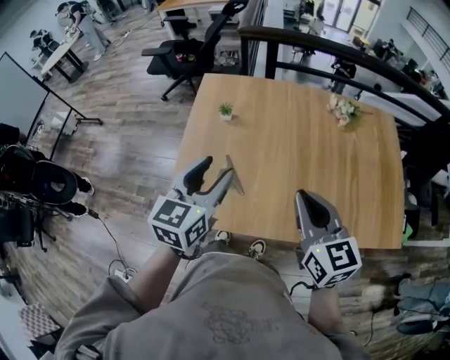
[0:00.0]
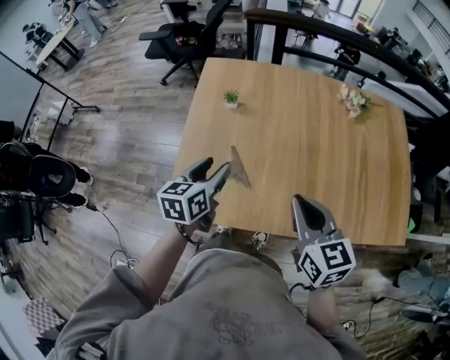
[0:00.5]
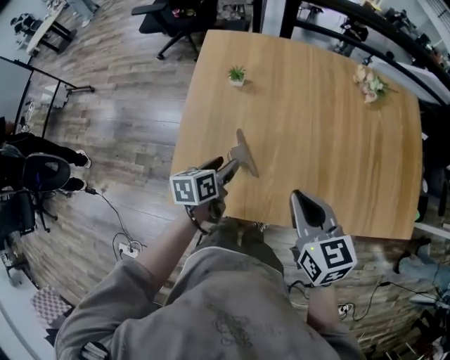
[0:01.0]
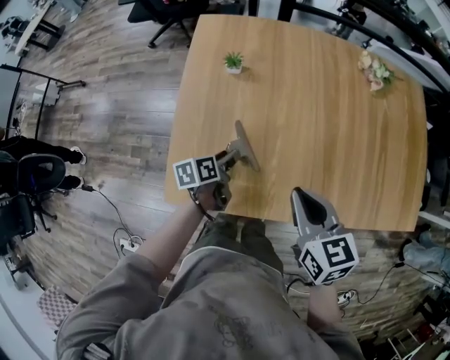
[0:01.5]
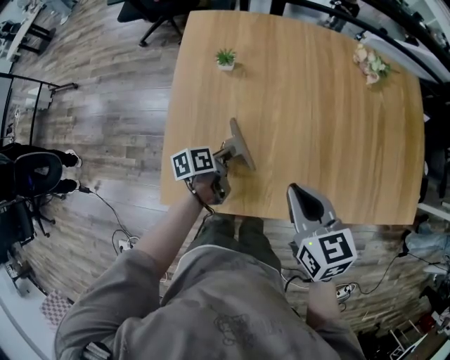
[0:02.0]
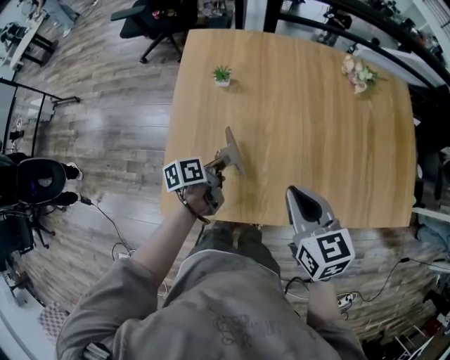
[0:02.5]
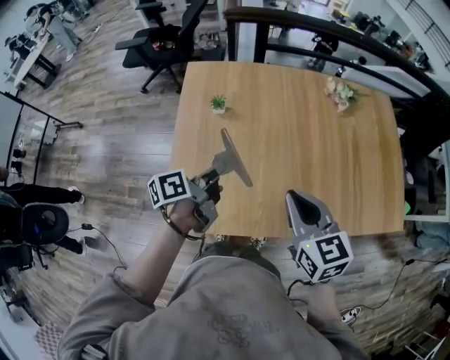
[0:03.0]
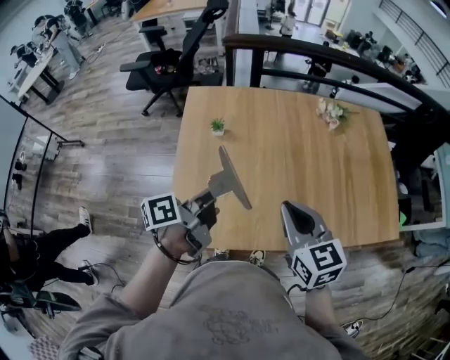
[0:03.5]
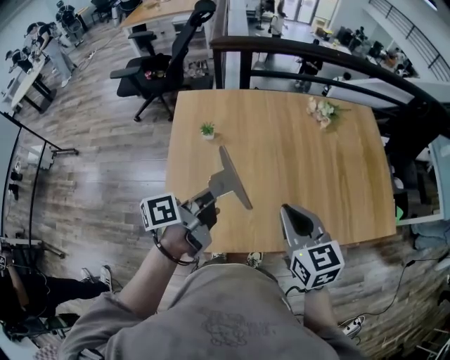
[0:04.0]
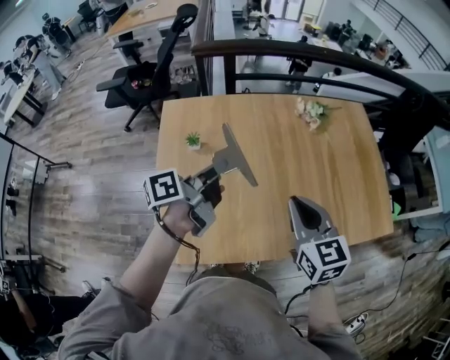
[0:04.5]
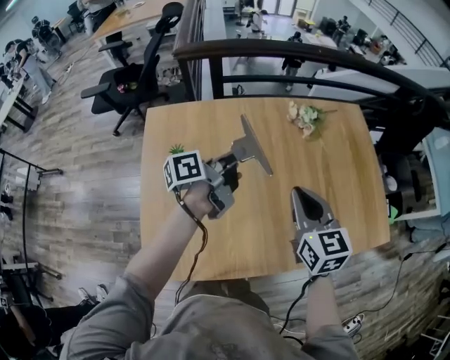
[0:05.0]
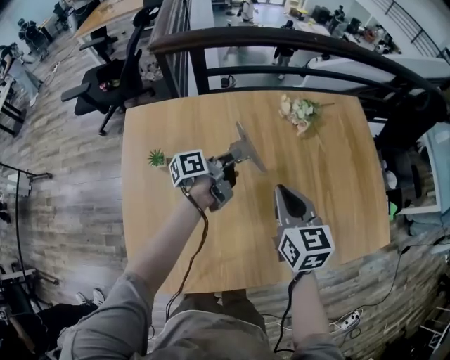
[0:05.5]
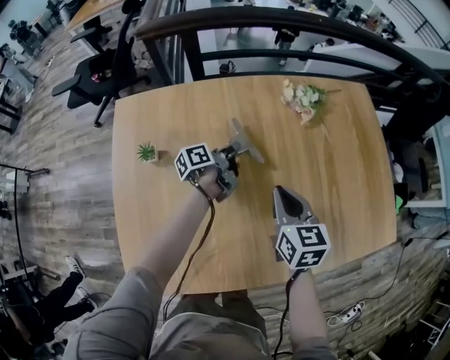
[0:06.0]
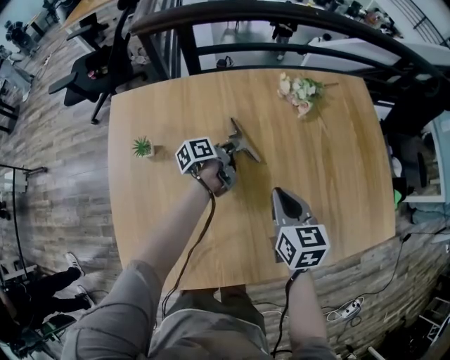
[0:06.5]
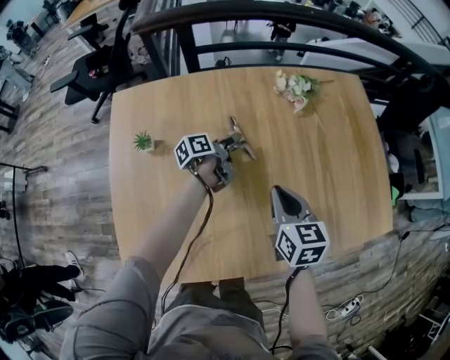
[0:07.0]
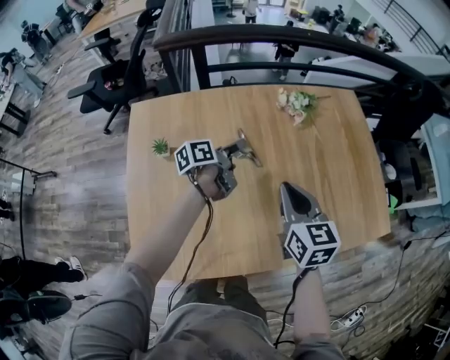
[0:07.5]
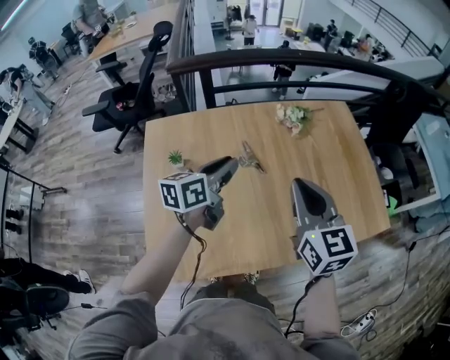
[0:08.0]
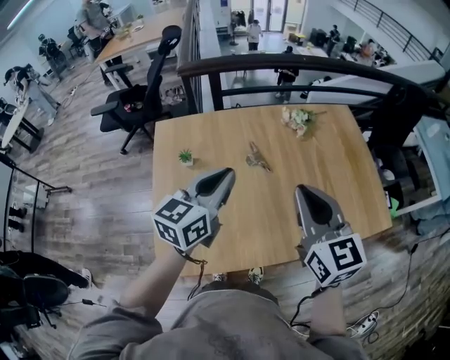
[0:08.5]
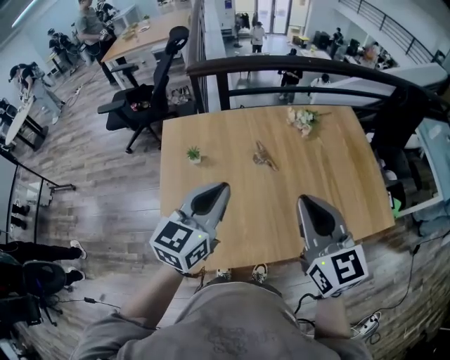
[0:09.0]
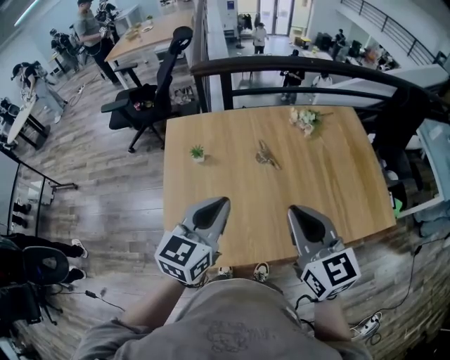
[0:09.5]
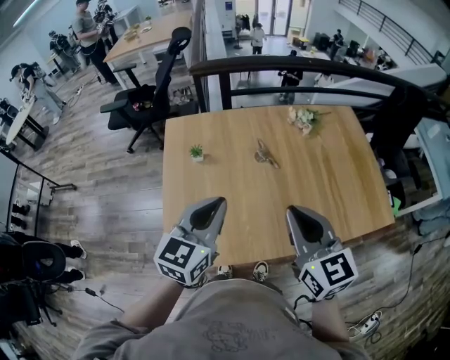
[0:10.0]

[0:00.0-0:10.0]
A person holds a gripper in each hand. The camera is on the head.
0:00.0 to 0:02.0: The right gripper goes some 20 cm downward and to the left, and changes its angle by some 20 degrees. Meanwhile the left gripper shifts approximately 35 cm downward, rotates around the line of its fingers by some 60 degrees, counterclockwise from behind, and closes its fingers.
0:02.0 to 0:04.0: The right gripper travels upward by about 15 cm. The left gripper travels upward by roughly 30 cm, and swivels about 20 degrees.
0:04.0 to 0:06.0: Both grippers move forward and downward, about 40 cm.
0:06.0 to 0:08.0: Both grippers travel together upward and backward, approximately 35 cm. The left gripper rotates around the line of its fingers by about 50 degrees, clockwise from behind, and opens, then closes again. The right gripper swivels some 20 degrees.
0:08.0 to 0:10.0: The right gripper goes some 15 cm backward and to the left, while the left gripper shifts approximately 20 cm backward, and changes its angle by roughly 30 degrees.

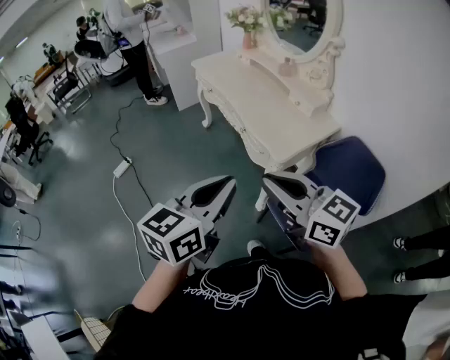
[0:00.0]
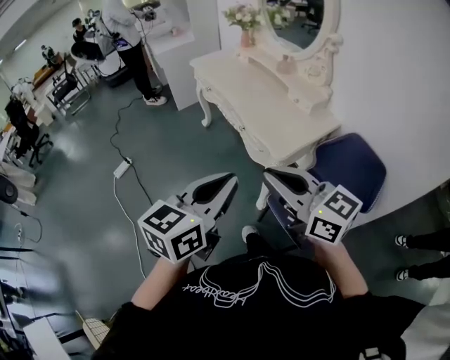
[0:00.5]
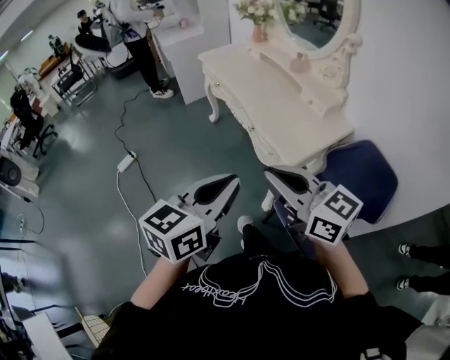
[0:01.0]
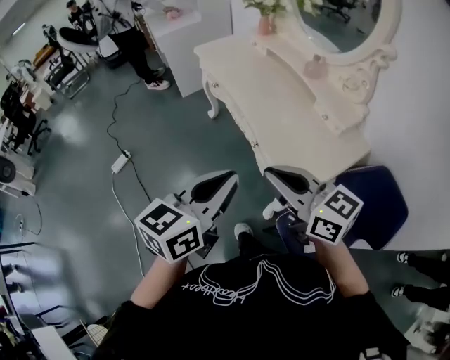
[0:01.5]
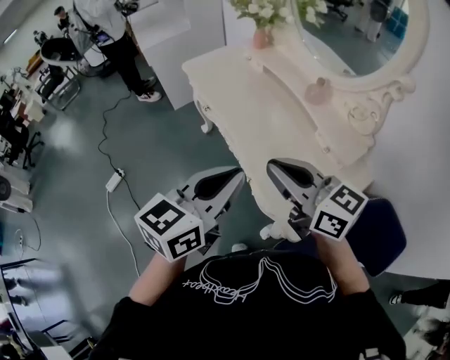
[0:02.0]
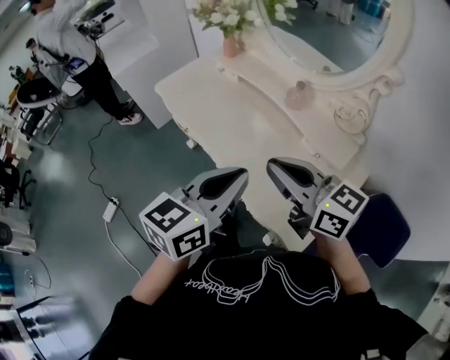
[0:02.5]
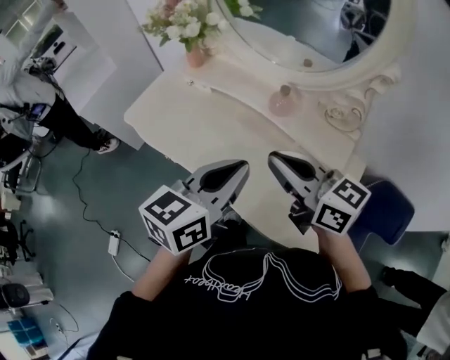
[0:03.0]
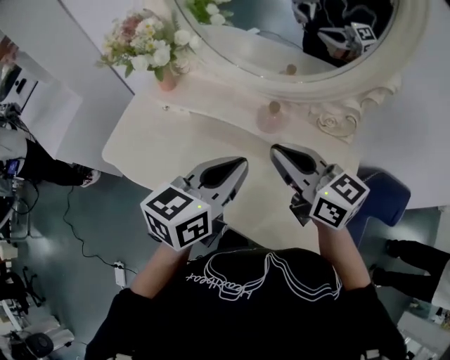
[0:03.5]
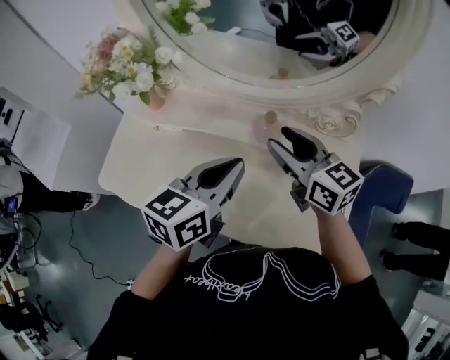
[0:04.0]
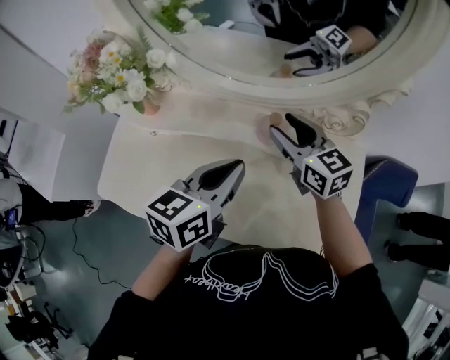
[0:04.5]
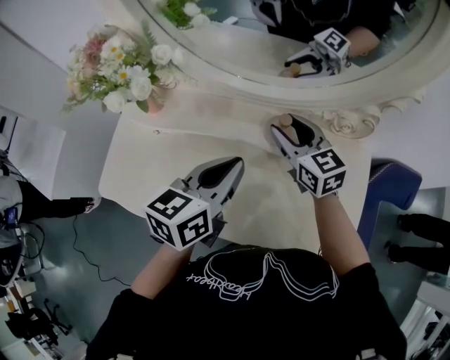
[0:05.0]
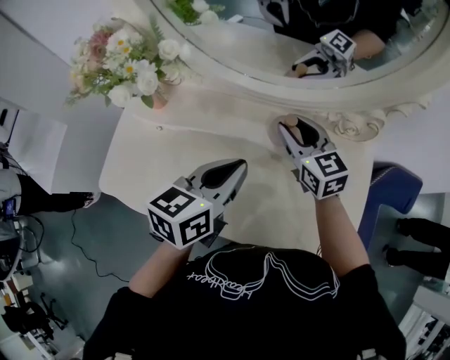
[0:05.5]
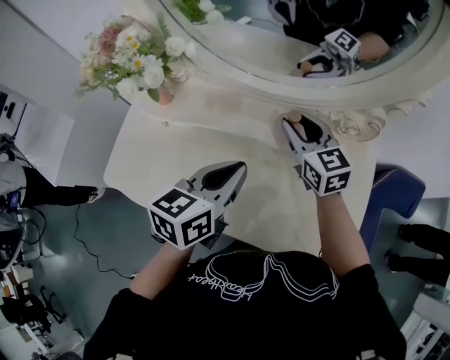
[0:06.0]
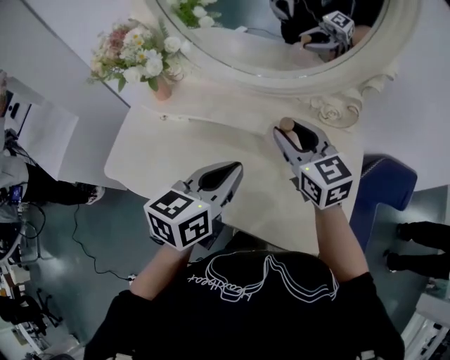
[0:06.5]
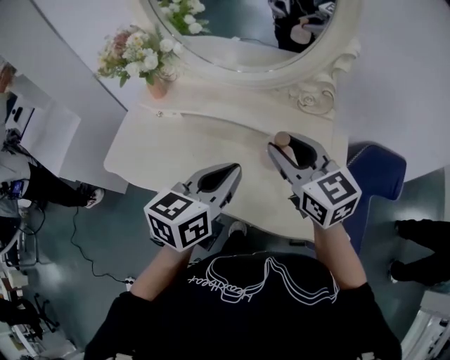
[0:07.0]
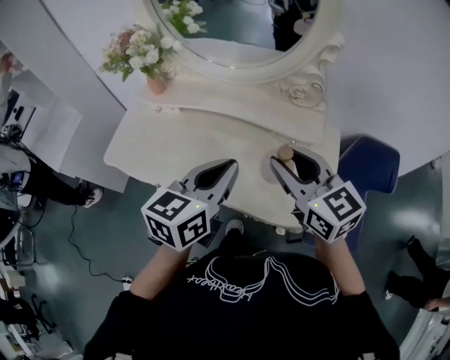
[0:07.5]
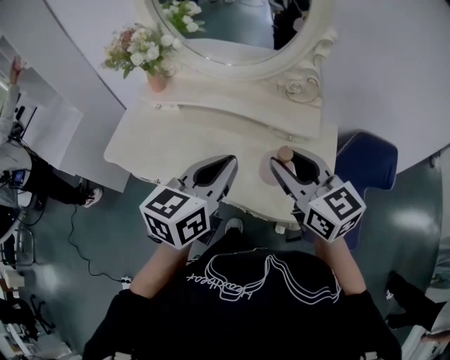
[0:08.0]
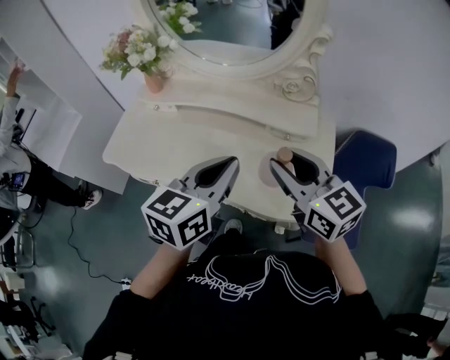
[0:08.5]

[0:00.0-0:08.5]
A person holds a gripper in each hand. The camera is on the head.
0:00.0 to 0:02.0: The pair of grippers is taken forward, some 40 cm.
0:02.0 to 0:04.0: The right gripper shifts by some 30 cm, turns by roughly 50 degrees, and opens up. Meanwhile the left gripper ends up about 30 cm from where it was, and changes its angle by approximately 40 degrees.
0:04.0 to 0:06.5: The right gripper reaches approximately 10 cm forward, then returns.
0:06.5 to 0:08.5: The right gripper moves backward, about 20 cm, while the left gripper goes about 15 cm backward and to the right.

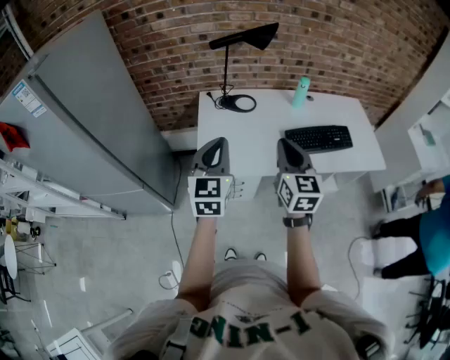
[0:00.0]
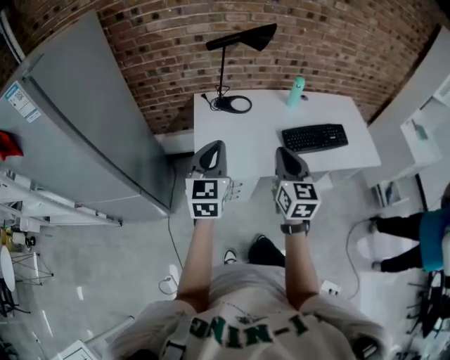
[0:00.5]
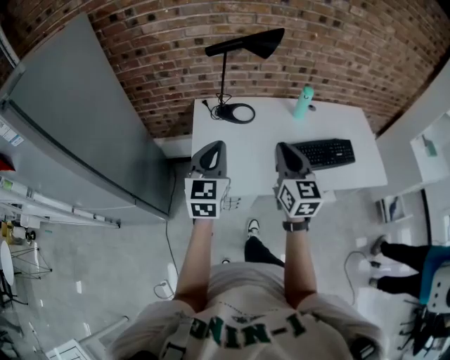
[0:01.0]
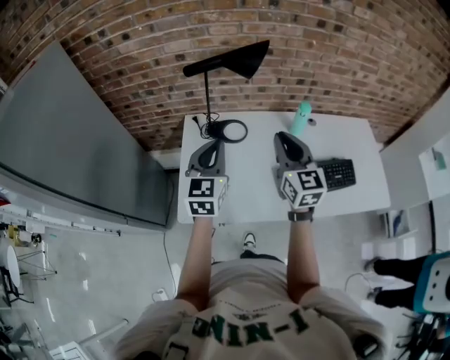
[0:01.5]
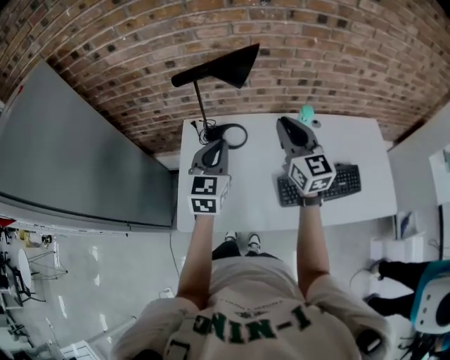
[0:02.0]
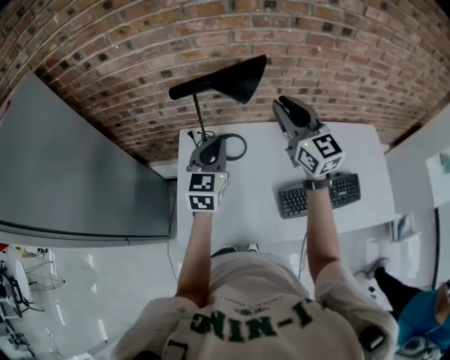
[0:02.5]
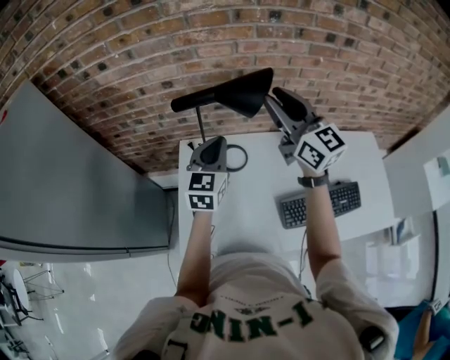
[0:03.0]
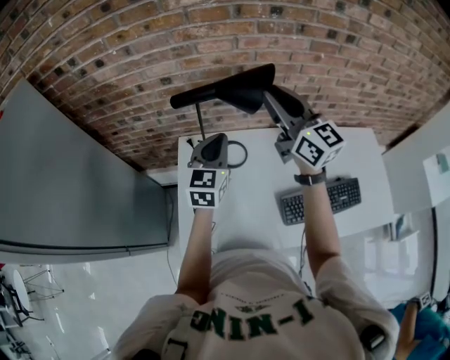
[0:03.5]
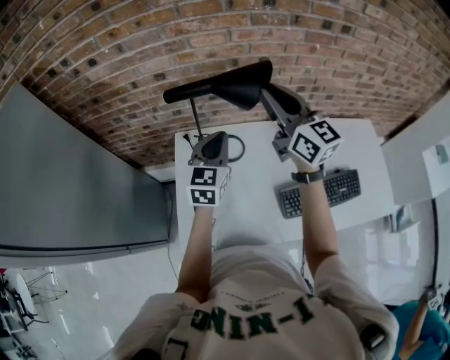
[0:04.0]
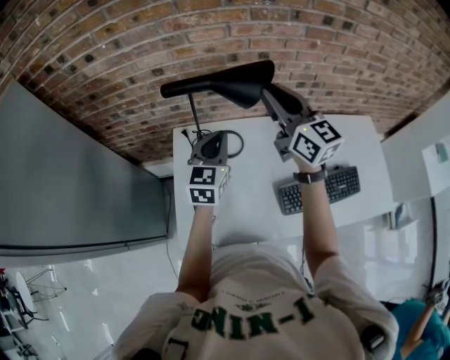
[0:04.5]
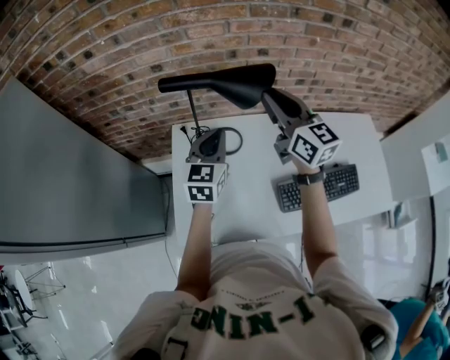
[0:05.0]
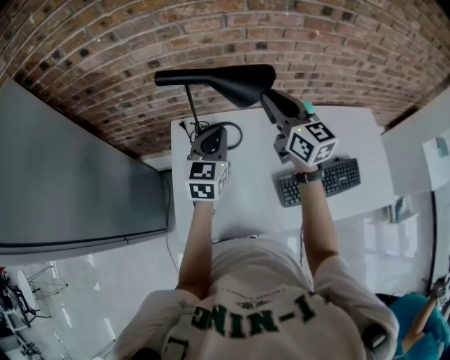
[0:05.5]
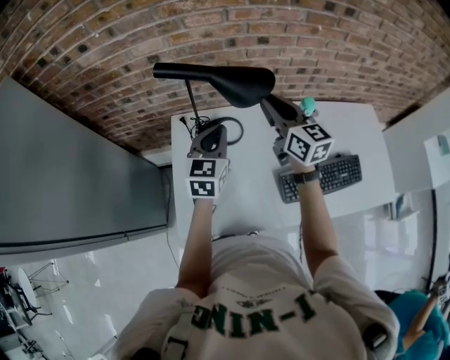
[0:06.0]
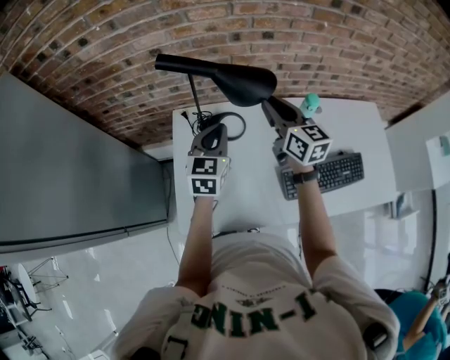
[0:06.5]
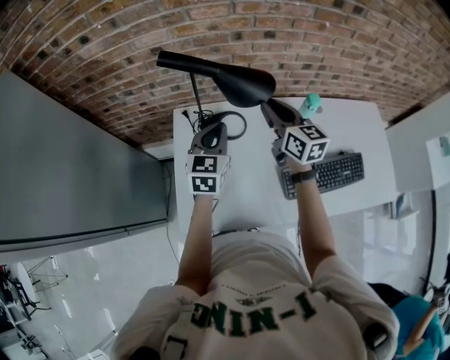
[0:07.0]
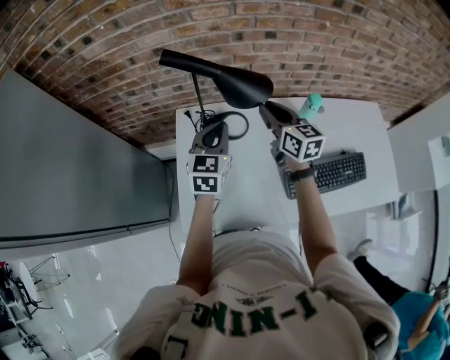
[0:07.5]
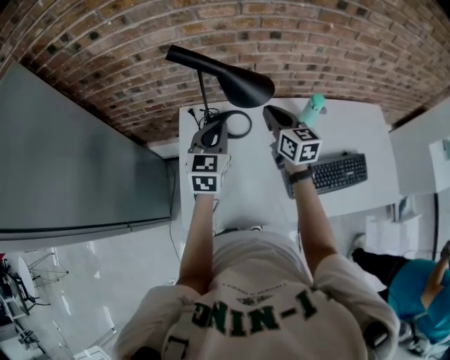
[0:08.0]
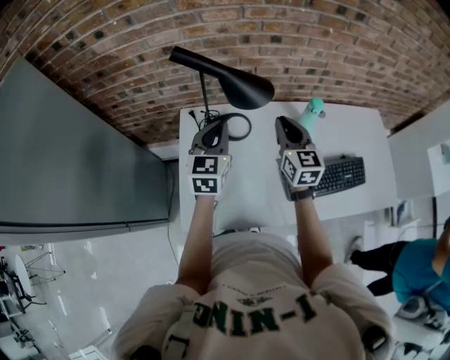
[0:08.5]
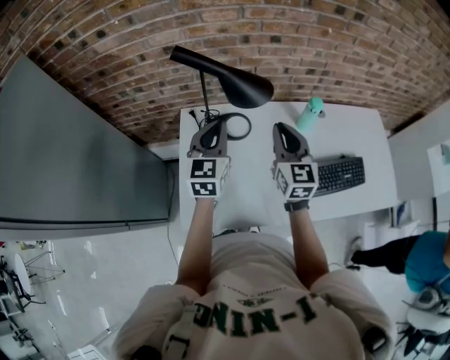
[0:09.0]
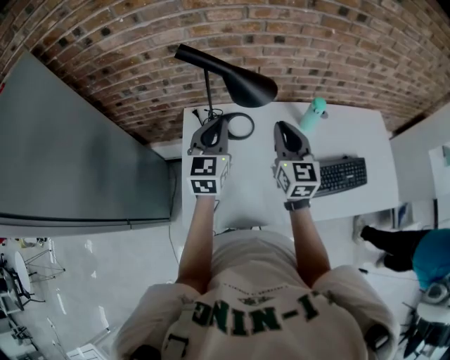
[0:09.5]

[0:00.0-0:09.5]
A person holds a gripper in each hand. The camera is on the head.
0:00.0 to 0:02.0: Both grippers move forward, approximately 35 cm.
0:02.0 to 0:04.0: The left gripper heads forward, covering about 10 cm. Meanwhile the right gripper goes some 15 cm forward and upward.
0:04.0 to 0:05.5: The right gripper is displaced downward by some 5 cm.
0:05.5 to 0:07.5: The right gripper is displaced downward by approximately 10 cm.
0:07.5 to 0:09.5: The left gripper moves approximately 5 cm. Meanwhile the right gripper moves backward, approximately 10 cm, and turns by some 20 degrees.
